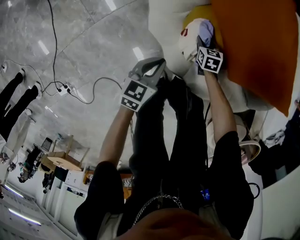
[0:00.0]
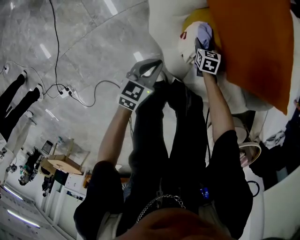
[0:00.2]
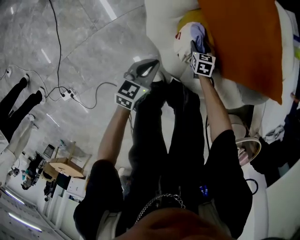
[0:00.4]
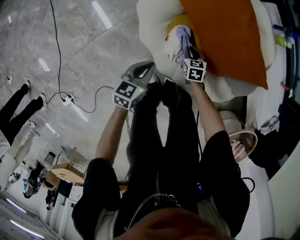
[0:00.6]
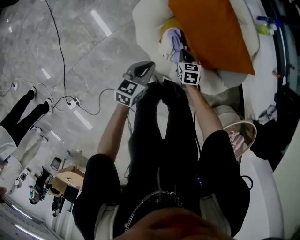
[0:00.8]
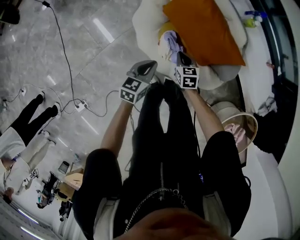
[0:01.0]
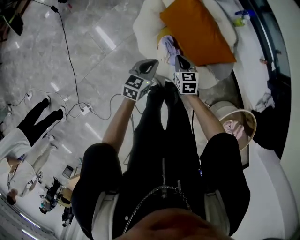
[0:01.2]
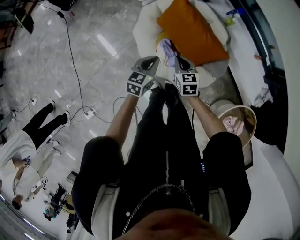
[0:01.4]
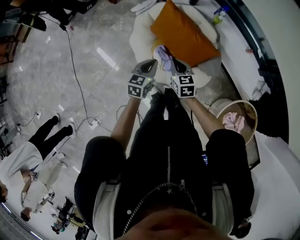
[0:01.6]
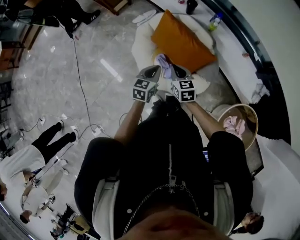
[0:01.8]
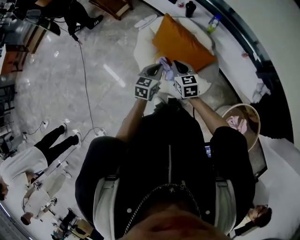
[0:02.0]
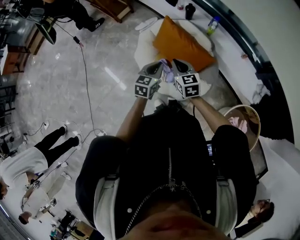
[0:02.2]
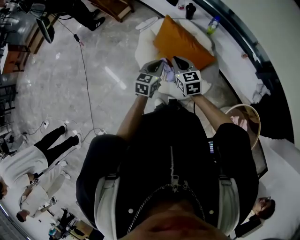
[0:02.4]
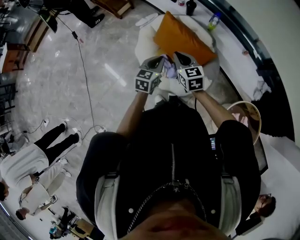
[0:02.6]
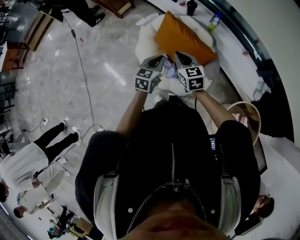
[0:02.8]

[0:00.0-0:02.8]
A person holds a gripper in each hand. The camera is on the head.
0:00.0 to 0:01.4: The grippers both shift upward by approximately 50 cm. The right gripper closes.
0:01.4 to 0:02.8: The right gripper goes roughly 20 cm upward. Meanwhile the left gripper travels upward and to the right by some 10 cm.

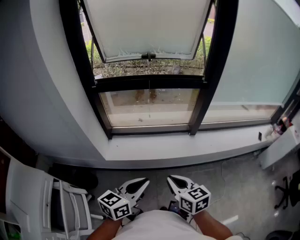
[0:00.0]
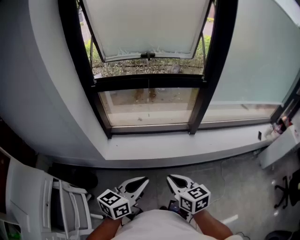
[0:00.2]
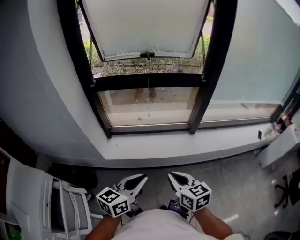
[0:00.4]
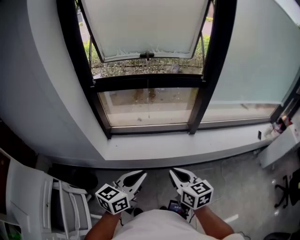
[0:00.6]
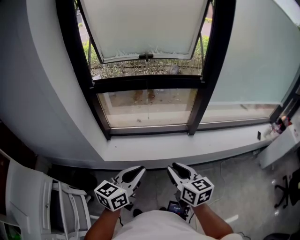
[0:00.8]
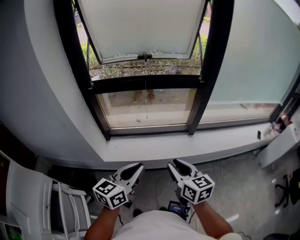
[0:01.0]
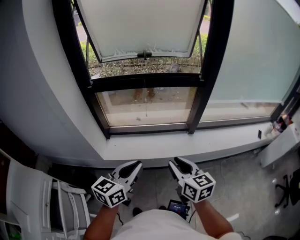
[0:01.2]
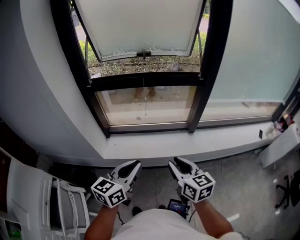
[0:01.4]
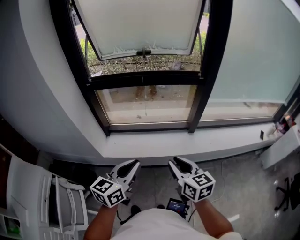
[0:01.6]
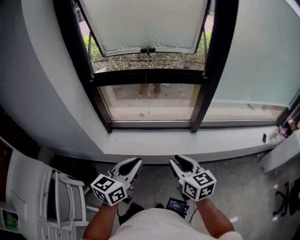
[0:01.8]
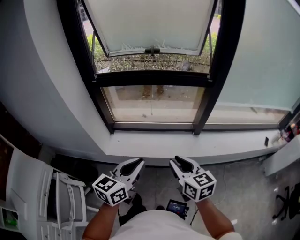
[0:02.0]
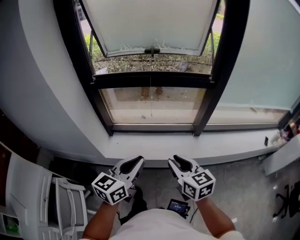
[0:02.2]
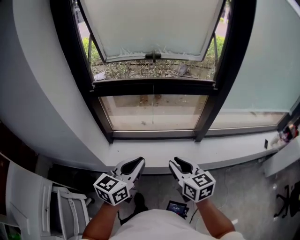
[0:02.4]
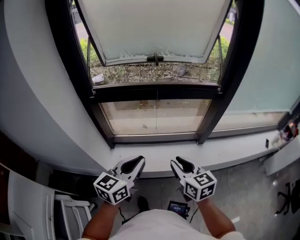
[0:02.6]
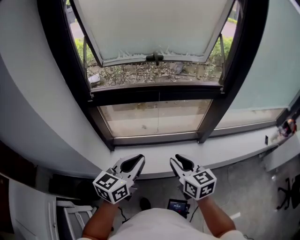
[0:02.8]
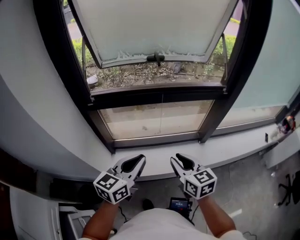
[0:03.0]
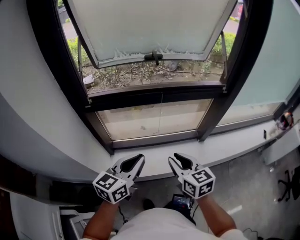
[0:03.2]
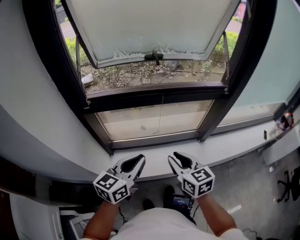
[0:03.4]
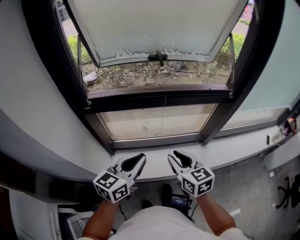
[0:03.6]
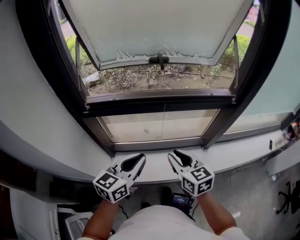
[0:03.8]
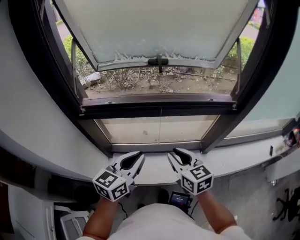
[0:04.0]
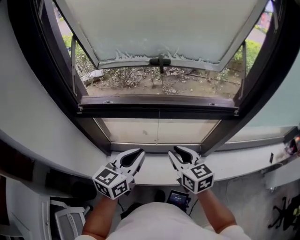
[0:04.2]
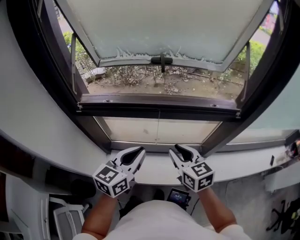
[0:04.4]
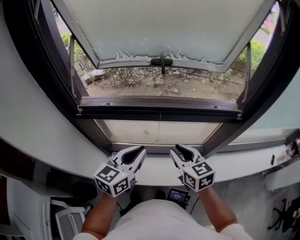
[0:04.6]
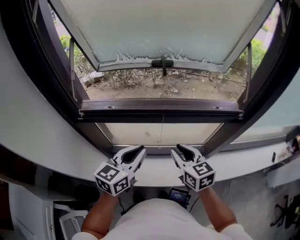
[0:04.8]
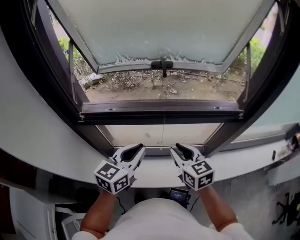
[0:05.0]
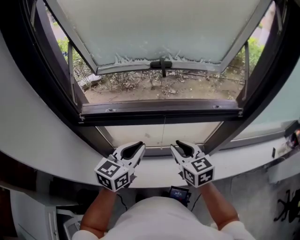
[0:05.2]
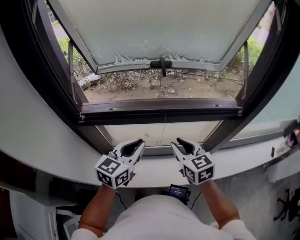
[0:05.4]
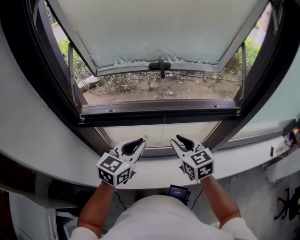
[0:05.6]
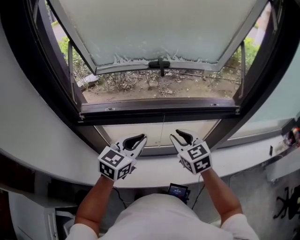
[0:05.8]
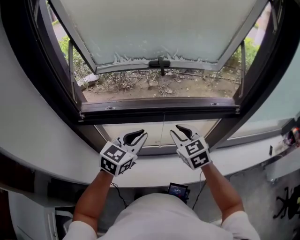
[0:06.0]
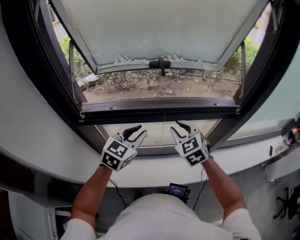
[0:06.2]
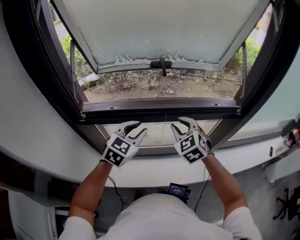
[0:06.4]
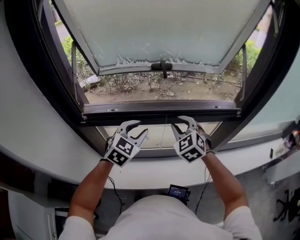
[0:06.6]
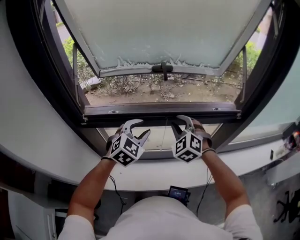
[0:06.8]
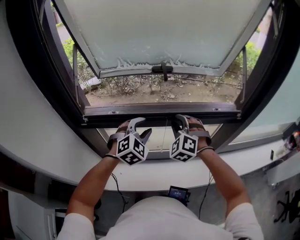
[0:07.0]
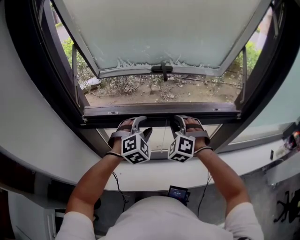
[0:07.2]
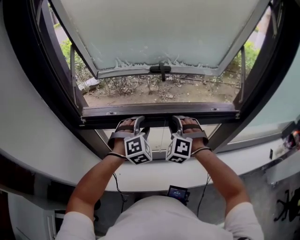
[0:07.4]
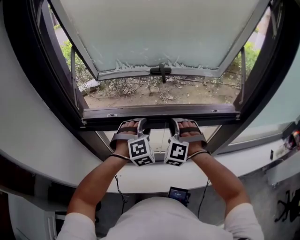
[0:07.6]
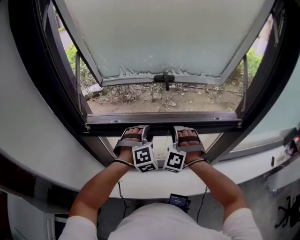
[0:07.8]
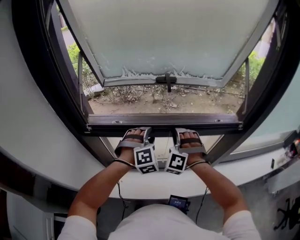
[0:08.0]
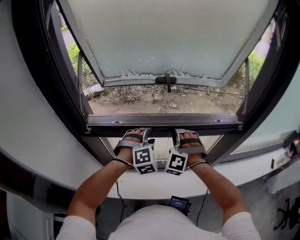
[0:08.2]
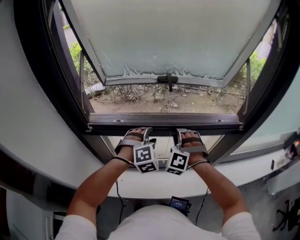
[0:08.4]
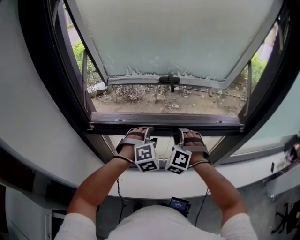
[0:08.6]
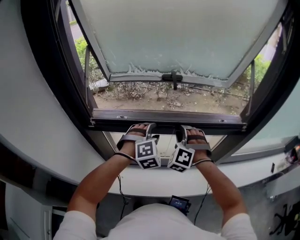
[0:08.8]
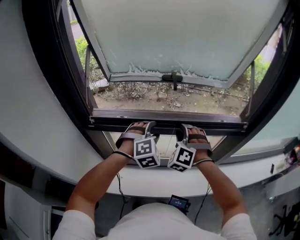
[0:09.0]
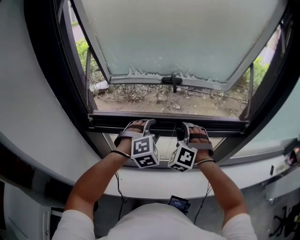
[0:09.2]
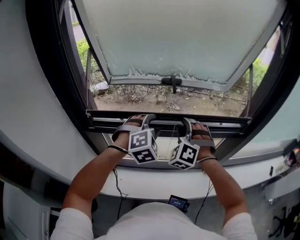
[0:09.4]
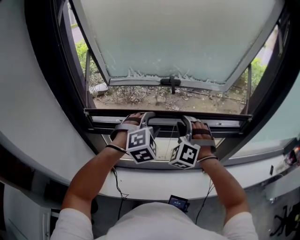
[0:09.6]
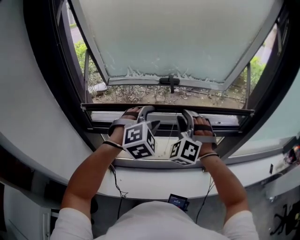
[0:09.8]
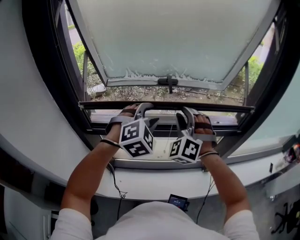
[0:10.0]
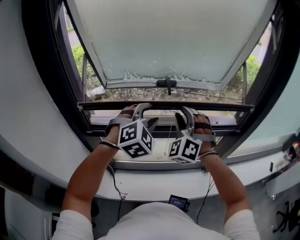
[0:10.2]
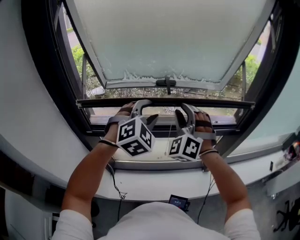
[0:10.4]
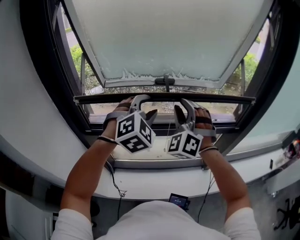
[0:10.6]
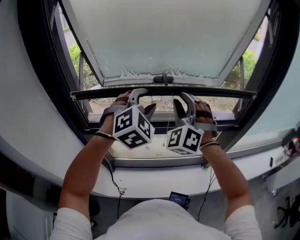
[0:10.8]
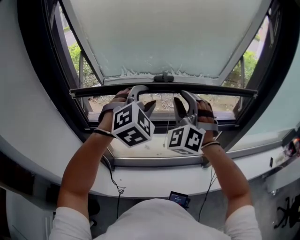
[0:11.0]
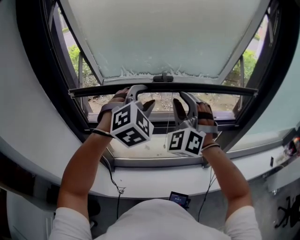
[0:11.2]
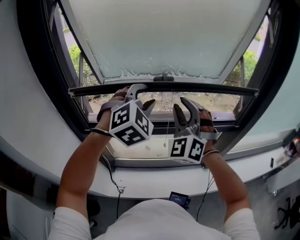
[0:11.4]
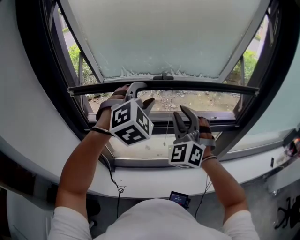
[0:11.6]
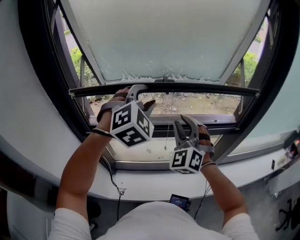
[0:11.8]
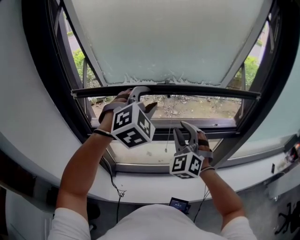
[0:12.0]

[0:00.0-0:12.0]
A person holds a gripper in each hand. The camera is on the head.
0:00.0 to 0:01.6: The left gripper shifts roughly 5 cm forward. Meanwhile the right gripper goes about 10 cm forward and to the right.
0:01.6 to 0:03.0: Both grippers move forward and to the left, approximately 25 cm.
0:03.0 to 0:04.4: The two grippers go some 15 cm forward.
0:04.4 to 0:06.0: The two grippers go approximately 10 cm forward. The left gripper turns by about 20 degrees, while the right gripper rotates some 20 degrees.
0:06.0 to 0:07.6: Both grippers move forward, some 10 cm. The left gripper rolls clockwise, seen from behind, by about 60 degrees, and opens its fingers; the right gripper rotates around the line of its fingers by about 60 degrees, counterclockwise from behind.
0:07.6 to 0:09.0: The grippers stay close to where they were, moving slightly.
0:09.0 to 0:10.4: The grippers both shift upward by some 15 cm. The right gripper turns by about 20 degrees.
0:10.4 to 0:12.0: The left gripper goes roughly 5 cm upward, while the right gripper shifts by approximately 5 cm.

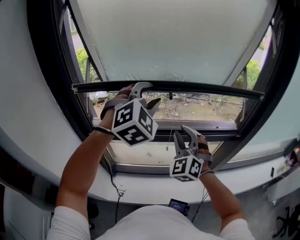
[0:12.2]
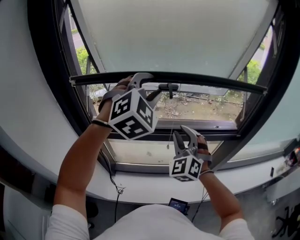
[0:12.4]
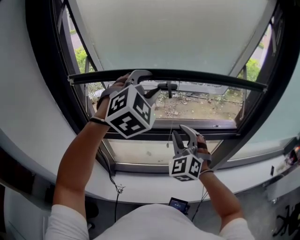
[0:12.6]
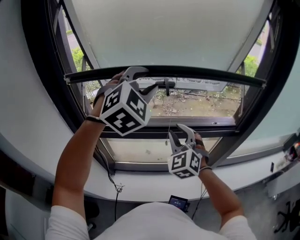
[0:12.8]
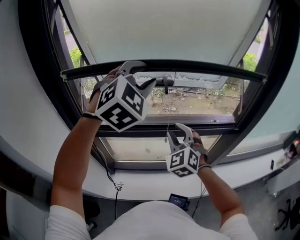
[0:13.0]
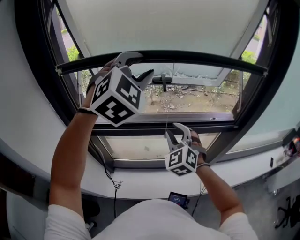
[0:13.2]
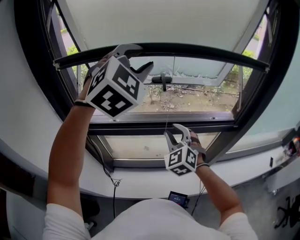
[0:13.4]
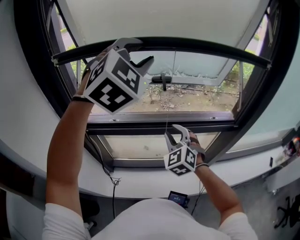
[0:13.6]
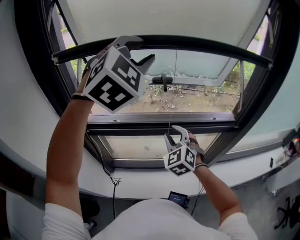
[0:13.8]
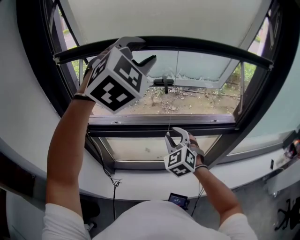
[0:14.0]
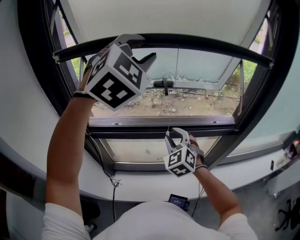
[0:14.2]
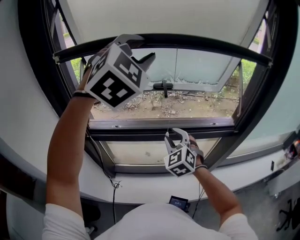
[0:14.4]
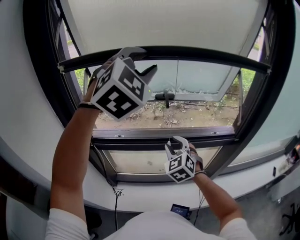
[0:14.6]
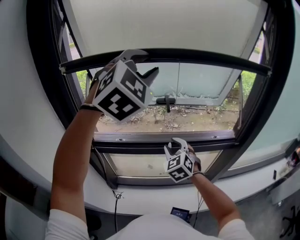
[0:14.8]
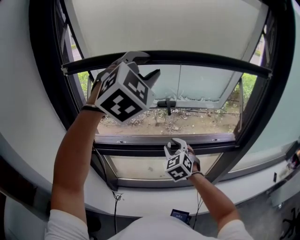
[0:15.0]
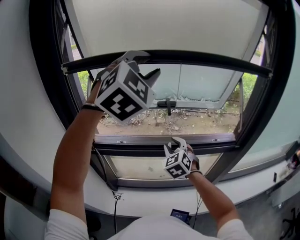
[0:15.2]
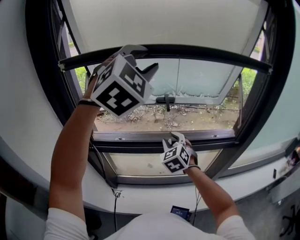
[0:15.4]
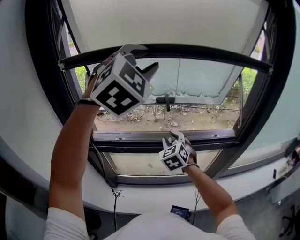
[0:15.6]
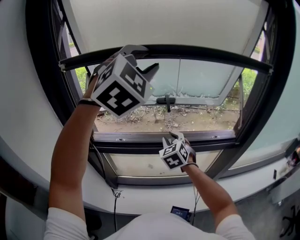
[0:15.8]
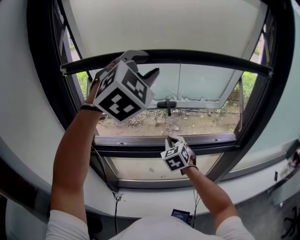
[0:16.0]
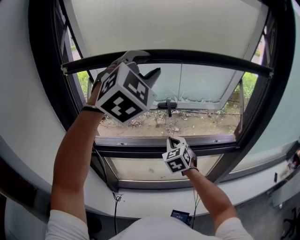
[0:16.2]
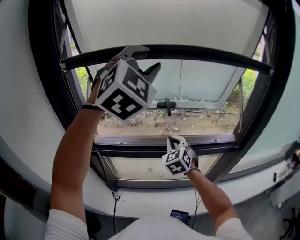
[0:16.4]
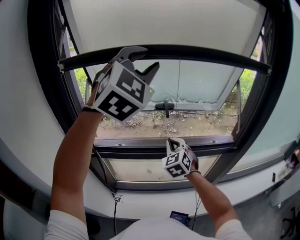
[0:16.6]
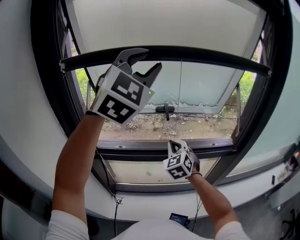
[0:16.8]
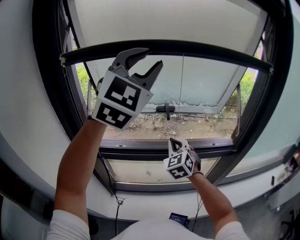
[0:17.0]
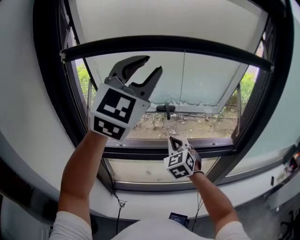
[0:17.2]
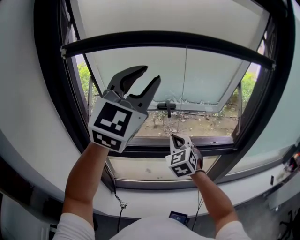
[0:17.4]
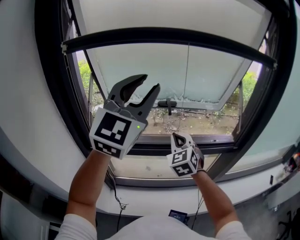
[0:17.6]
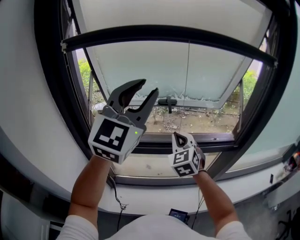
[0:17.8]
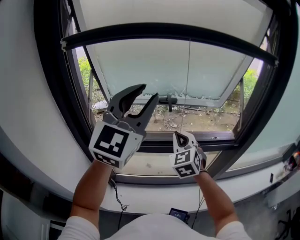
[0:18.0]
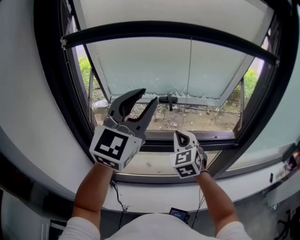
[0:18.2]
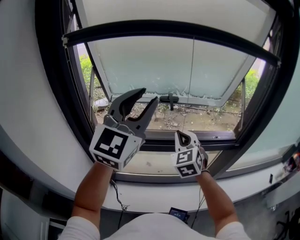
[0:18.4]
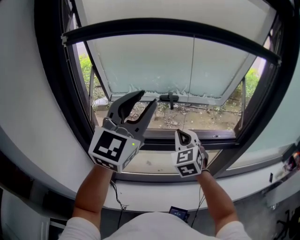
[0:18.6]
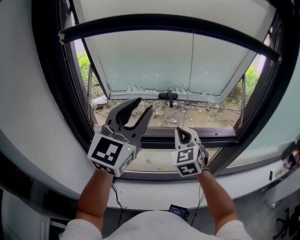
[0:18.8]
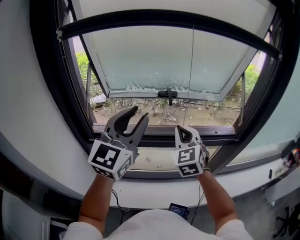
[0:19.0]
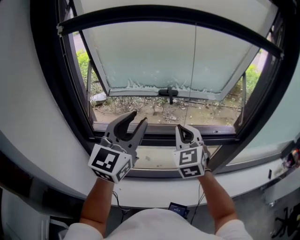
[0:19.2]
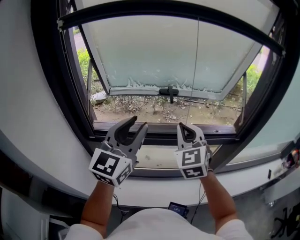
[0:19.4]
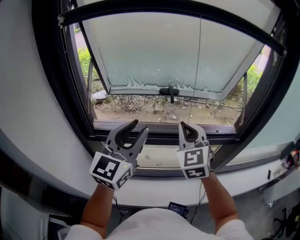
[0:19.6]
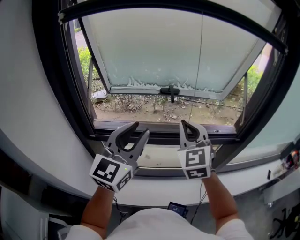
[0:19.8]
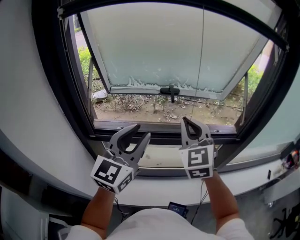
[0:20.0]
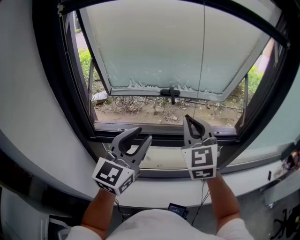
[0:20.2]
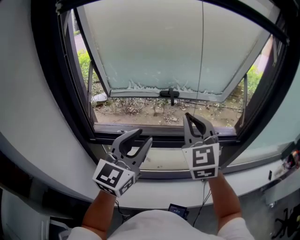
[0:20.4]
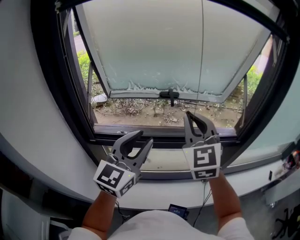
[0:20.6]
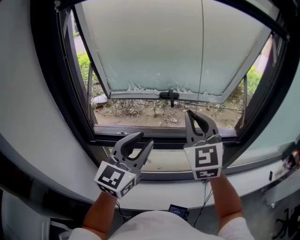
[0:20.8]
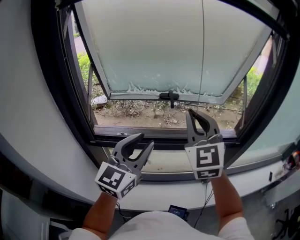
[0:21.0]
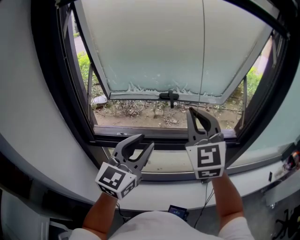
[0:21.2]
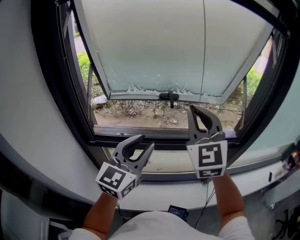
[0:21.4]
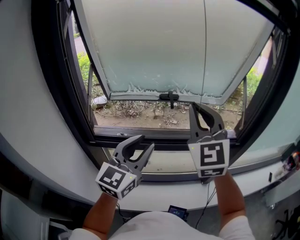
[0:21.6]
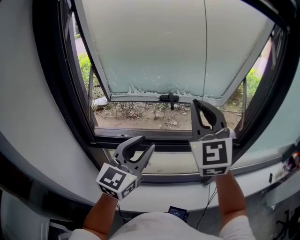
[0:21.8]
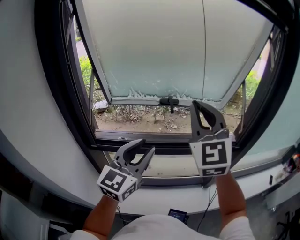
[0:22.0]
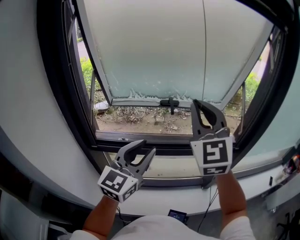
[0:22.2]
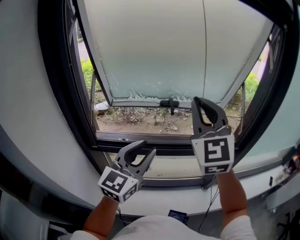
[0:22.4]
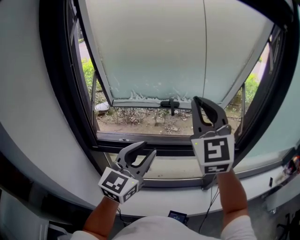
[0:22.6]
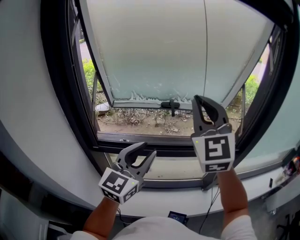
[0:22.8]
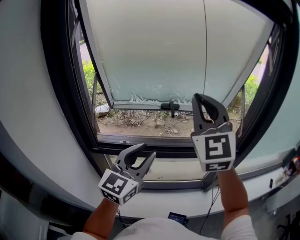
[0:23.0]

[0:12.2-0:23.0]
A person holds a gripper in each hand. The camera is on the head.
0:12.2 to 0:13.8: The right gripper shifts some 5 cm downward. The left gripper moves upward, roughly 10 cm.
0:13.8 to 0:15.2: The right gripper ends up some 5 cm from where it was.
0:15.2 to 0:16.8: The right gripper closes its fingers.
0:16.8 to 0:18.4: The left gripper shifts about 15 cm downward and backward, and changes its angle by some 30 degrees, while the right gripper ends up approximately 5 cm from where it was.
0:18.4 to 0:20.0: The left gripper shifts approximately 15 cm downward. The right gripper is displaced upward by about 10 cm.
0:20.0 to 0:21.4: The right gripper goes approximately 10 cm upward.
0:21.4 to 0:23.0: The right gripper travels upward by about 10 cm.
